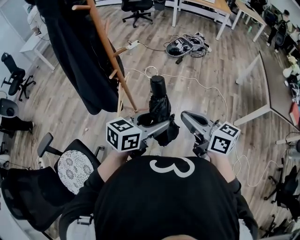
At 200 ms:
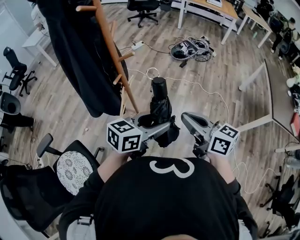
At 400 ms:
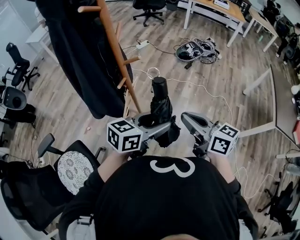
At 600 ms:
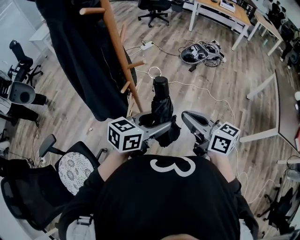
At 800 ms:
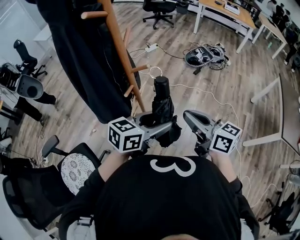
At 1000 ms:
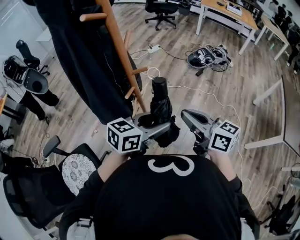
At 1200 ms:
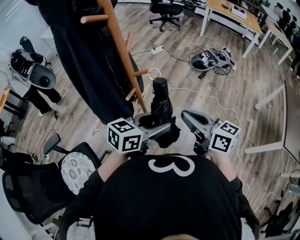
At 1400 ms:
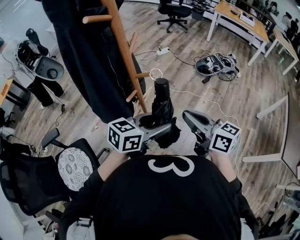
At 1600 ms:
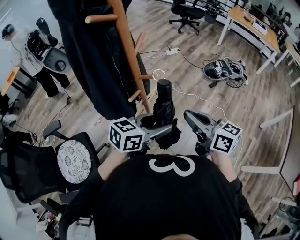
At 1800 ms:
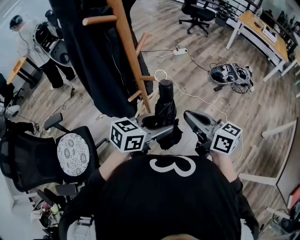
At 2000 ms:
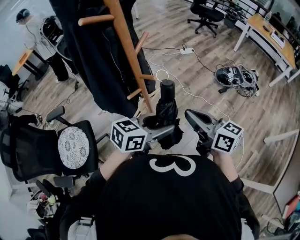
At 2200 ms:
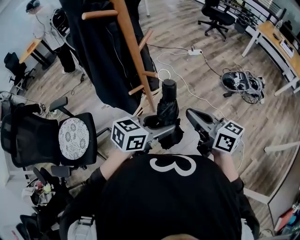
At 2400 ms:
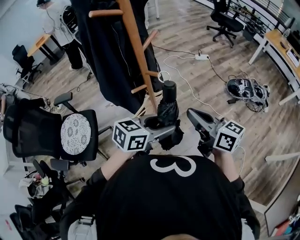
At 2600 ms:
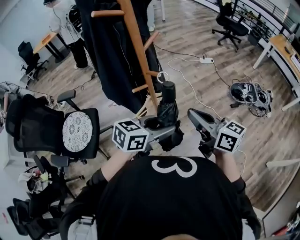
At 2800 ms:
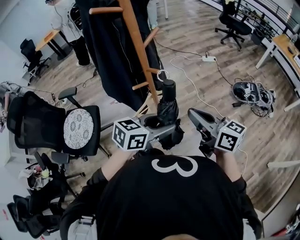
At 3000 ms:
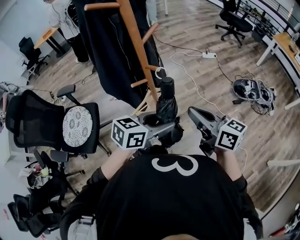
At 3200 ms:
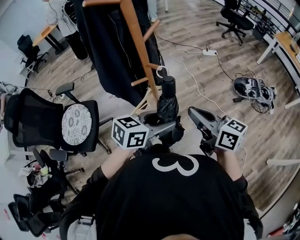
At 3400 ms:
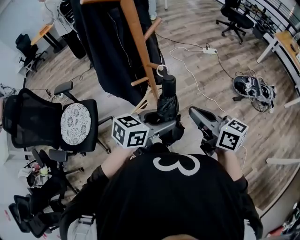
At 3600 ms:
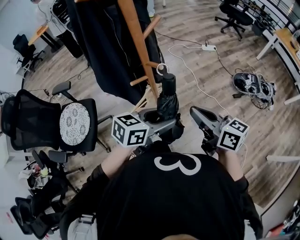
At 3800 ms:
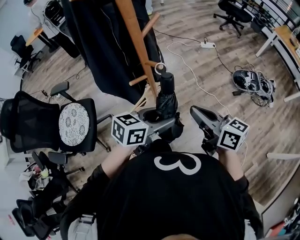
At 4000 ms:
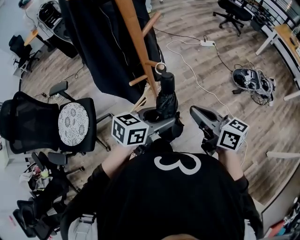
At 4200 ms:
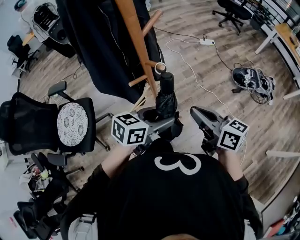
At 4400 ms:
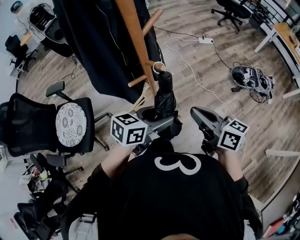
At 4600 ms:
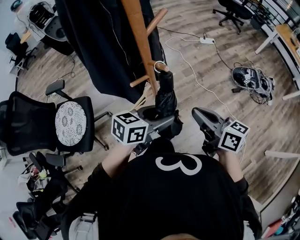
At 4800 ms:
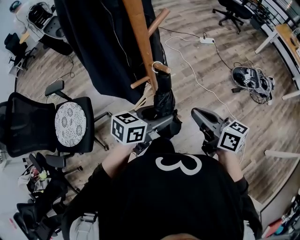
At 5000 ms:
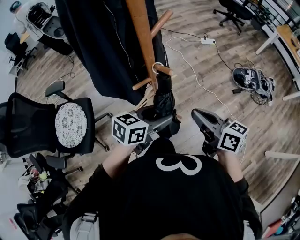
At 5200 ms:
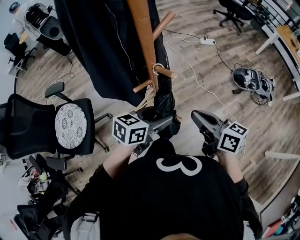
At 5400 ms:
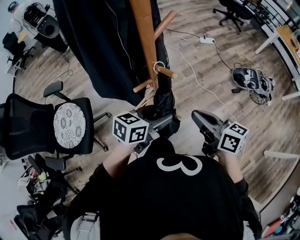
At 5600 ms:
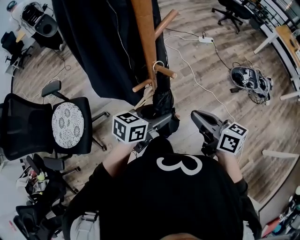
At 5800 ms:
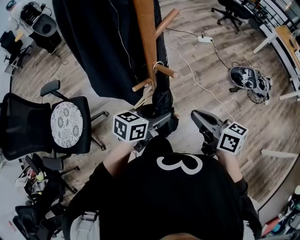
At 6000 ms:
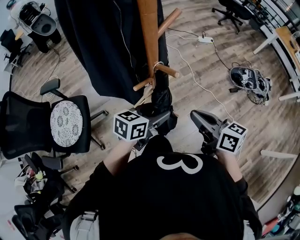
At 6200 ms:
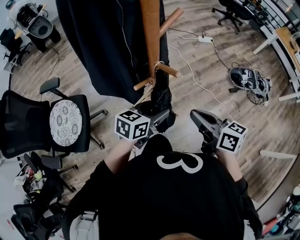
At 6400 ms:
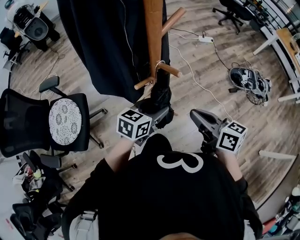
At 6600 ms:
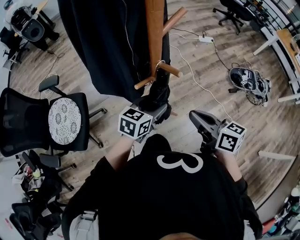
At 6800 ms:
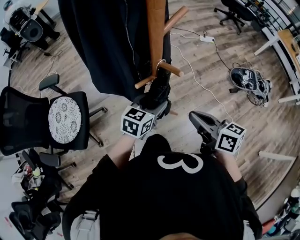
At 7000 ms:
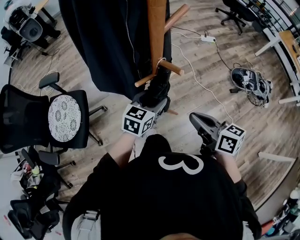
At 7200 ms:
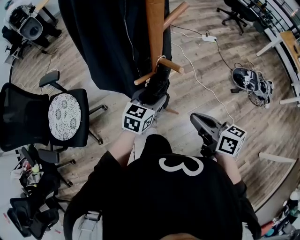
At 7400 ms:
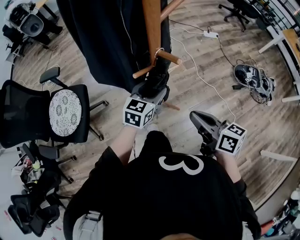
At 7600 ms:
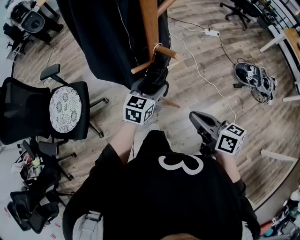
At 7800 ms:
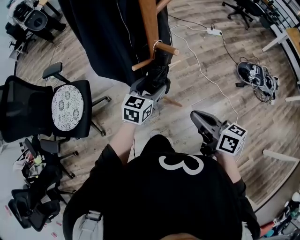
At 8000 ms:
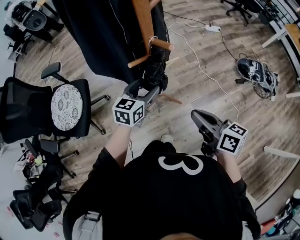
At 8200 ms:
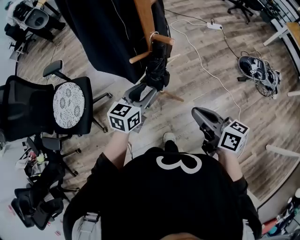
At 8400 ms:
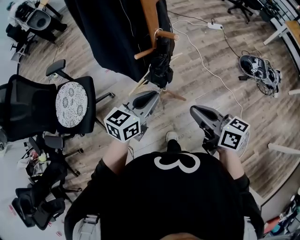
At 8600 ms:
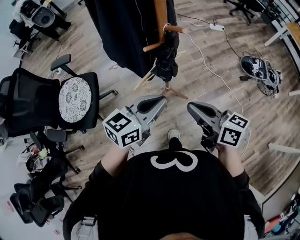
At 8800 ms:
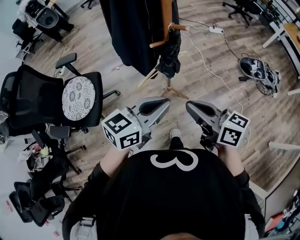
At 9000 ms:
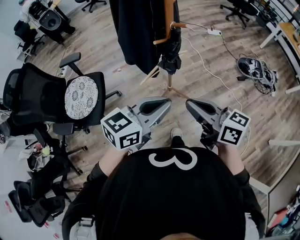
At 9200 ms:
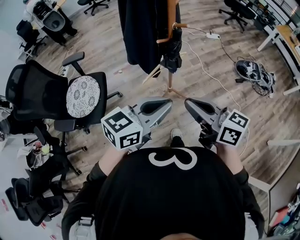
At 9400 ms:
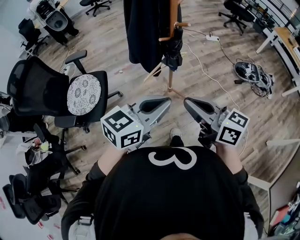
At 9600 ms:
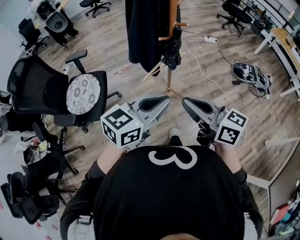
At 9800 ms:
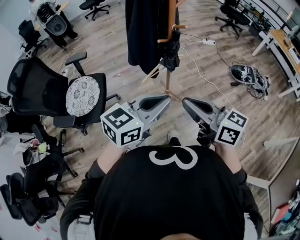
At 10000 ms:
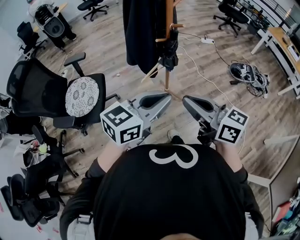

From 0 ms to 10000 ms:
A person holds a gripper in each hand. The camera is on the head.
From 0 ms to 1400 ms: The grippers both shift forward by approximately 20 cm.
From 1400 ms to 2800 ms: The left gripper moves roughly 5 cm, and turns by roughly 30 degrees. Meanwhile the right gripper ends up roughly 10 cm from where it was, and swivels some 30 degrees.
From 2800 ms to 4200 ms: The right gripper shifts about 5 cm downward. Meanwhile the left gripper heads downward and forward, covering some 10 cm.
From 4200 ms to 5800 ms: The left gripper changes place by roughly 10 cm.
From 5800 ms to 7200 ms: The left gripper is displaced forward by some 5 cm, and swivels some 30 degrees.
From 7200 ms to 8600 ms: The left gripper shifts approximately 20 cm backward and upward, and closes; the right gripper heads backward and to the left, covering approximately 10 cm.
From 8600 ms to 10000 ms: The grippers both shift backward and upward by roughly 25 cm.

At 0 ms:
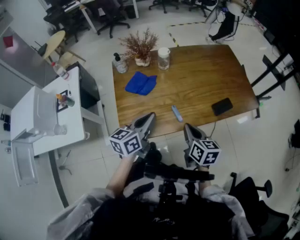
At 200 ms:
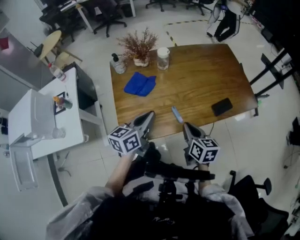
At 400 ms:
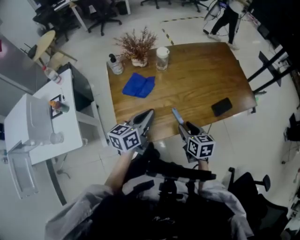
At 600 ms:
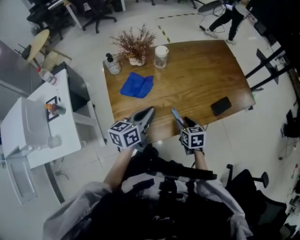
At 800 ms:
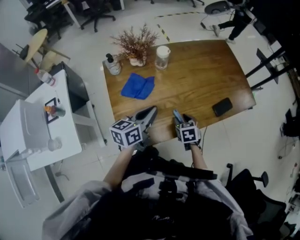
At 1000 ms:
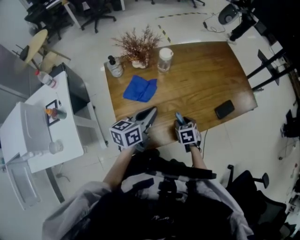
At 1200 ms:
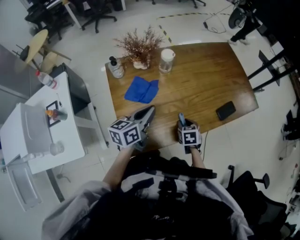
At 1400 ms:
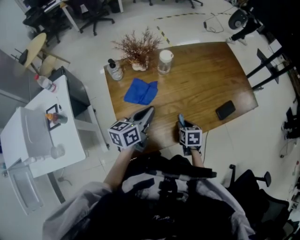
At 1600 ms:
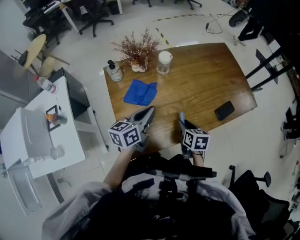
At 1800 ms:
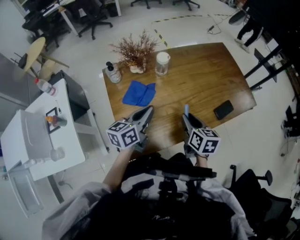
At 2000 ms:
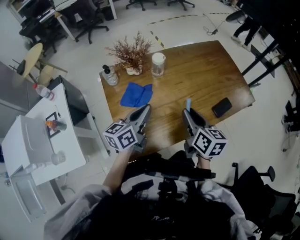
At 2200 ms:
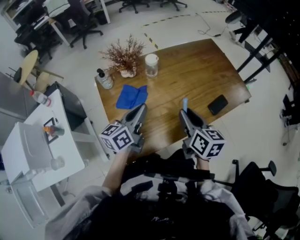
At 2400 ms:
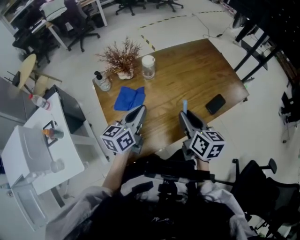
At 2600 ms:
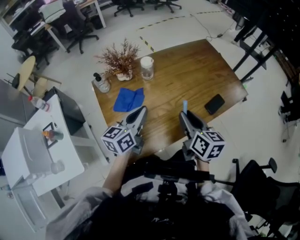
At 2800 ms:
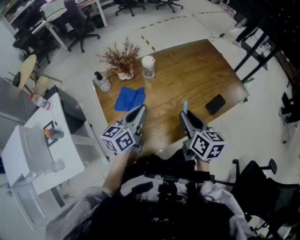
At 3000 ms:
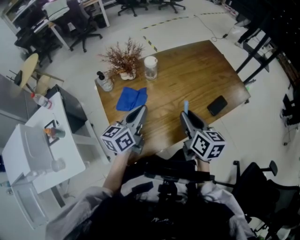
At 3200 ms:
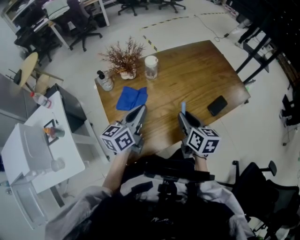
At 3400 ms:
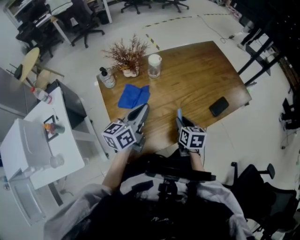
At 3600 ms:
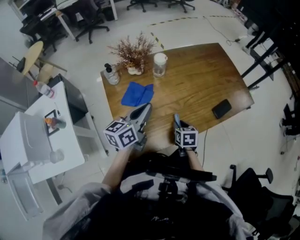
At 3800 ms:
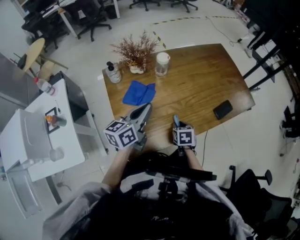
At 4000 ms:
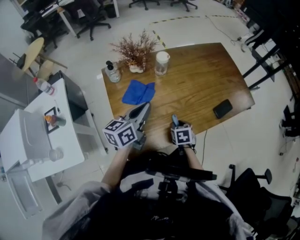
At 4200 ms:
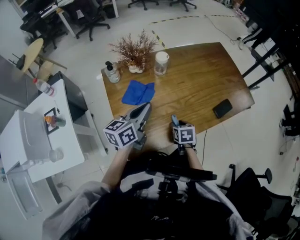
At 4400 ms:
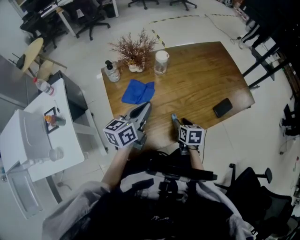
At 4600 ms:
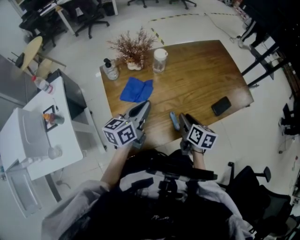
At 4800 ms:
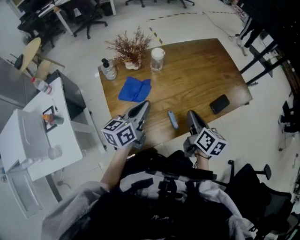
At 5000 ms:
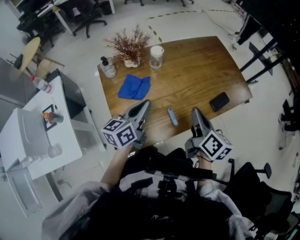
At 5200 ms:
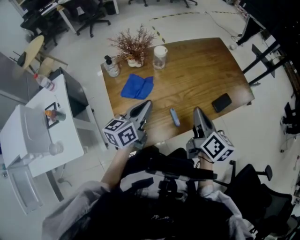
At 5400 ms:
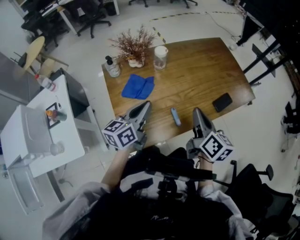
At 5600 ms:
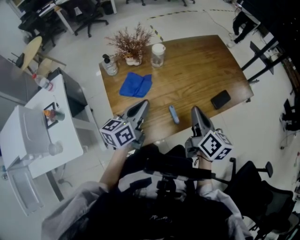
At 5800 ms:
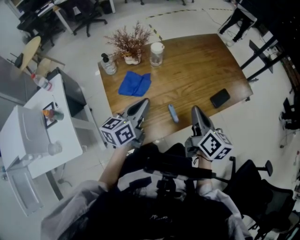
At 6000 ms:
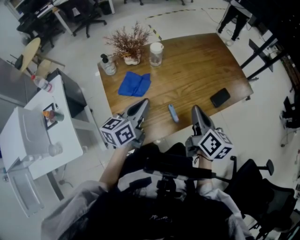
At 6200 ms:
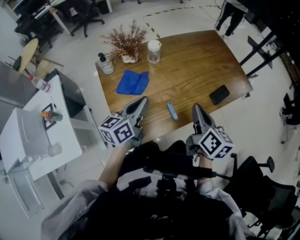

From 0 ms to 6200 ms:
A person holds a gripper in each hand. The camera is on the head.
From 0 ms to 1600 ms: The right gripper goes some 15 cm downward, forward and to the left, and opens, while the left gripper shifts approximately 10 cm forward and to the left.
From 1600 ms to 3200 ms: The right gripper heads upward, covering roughly 10 cm.
From 3200 ms to 4600 ms: The right gripper goes some 5 cm downward.
From 4600 ms to 6200 ms: The right gripper shifts about 10 cm upward, and closes its fingers.

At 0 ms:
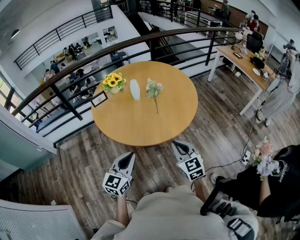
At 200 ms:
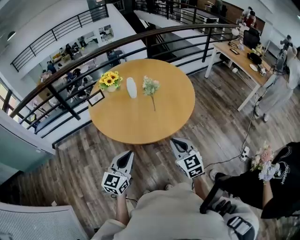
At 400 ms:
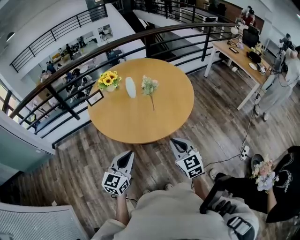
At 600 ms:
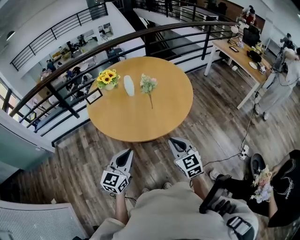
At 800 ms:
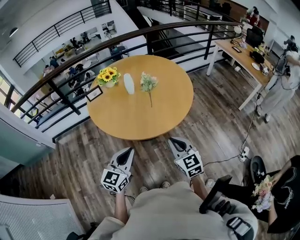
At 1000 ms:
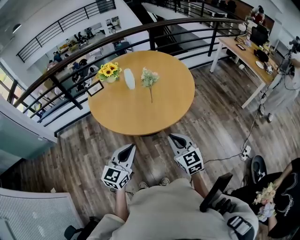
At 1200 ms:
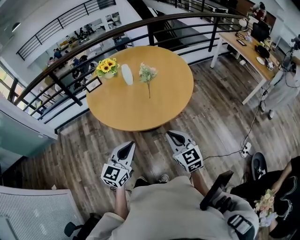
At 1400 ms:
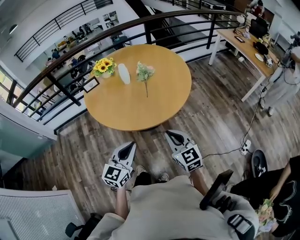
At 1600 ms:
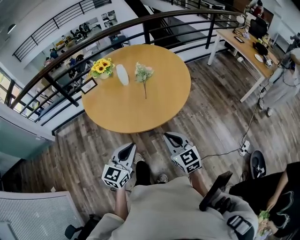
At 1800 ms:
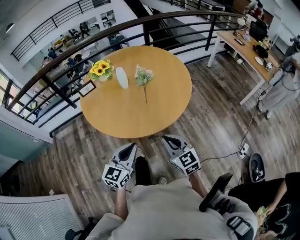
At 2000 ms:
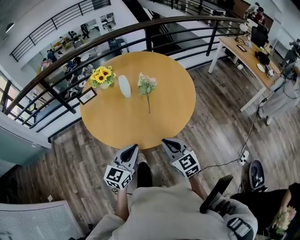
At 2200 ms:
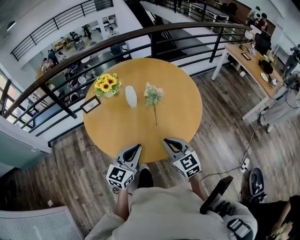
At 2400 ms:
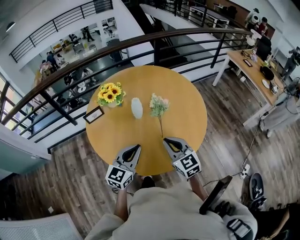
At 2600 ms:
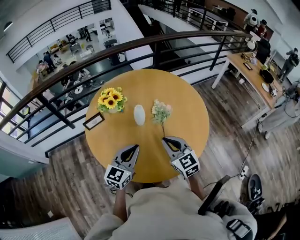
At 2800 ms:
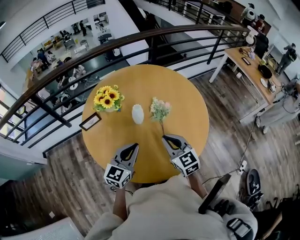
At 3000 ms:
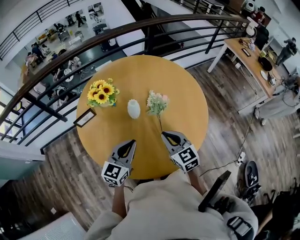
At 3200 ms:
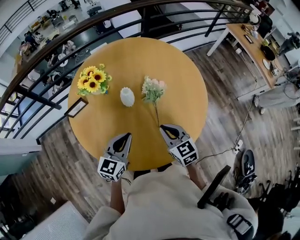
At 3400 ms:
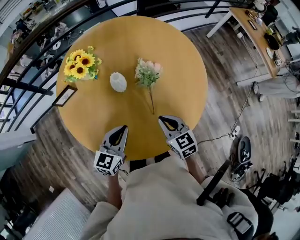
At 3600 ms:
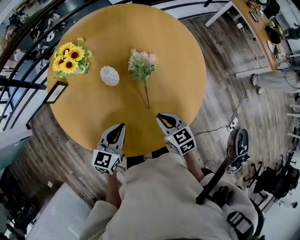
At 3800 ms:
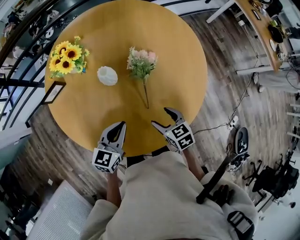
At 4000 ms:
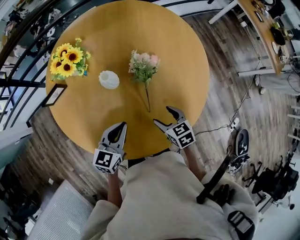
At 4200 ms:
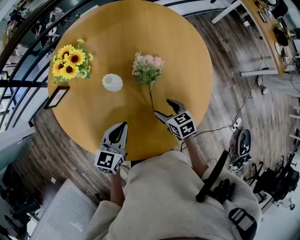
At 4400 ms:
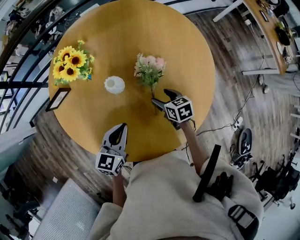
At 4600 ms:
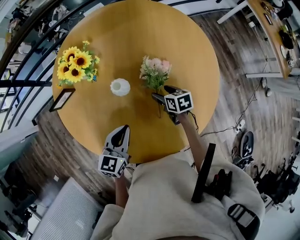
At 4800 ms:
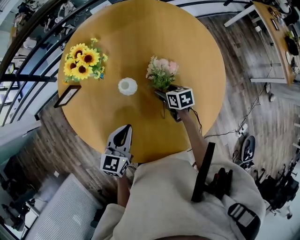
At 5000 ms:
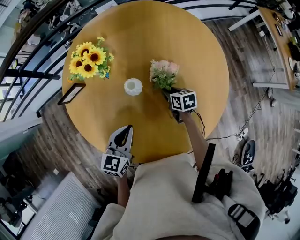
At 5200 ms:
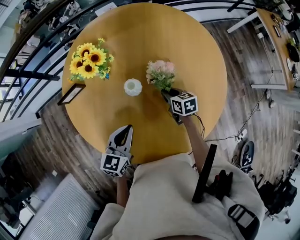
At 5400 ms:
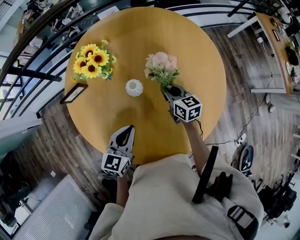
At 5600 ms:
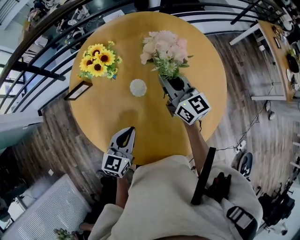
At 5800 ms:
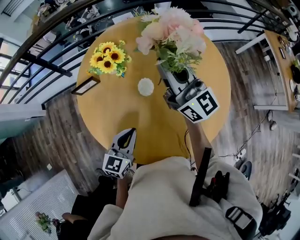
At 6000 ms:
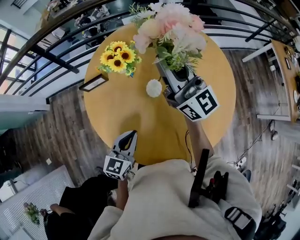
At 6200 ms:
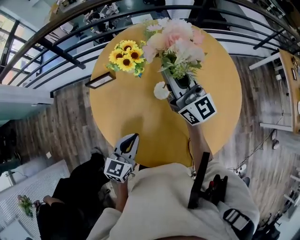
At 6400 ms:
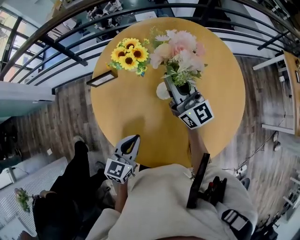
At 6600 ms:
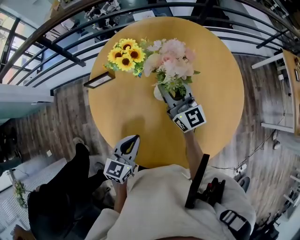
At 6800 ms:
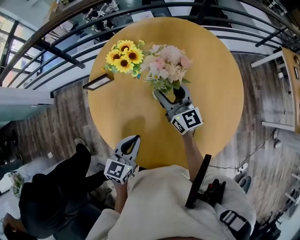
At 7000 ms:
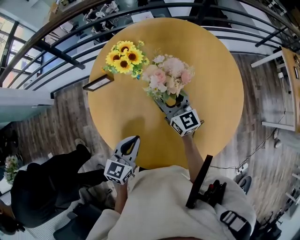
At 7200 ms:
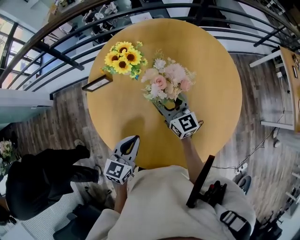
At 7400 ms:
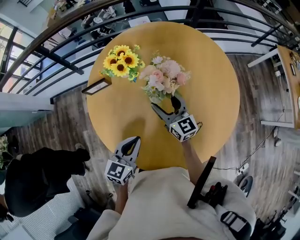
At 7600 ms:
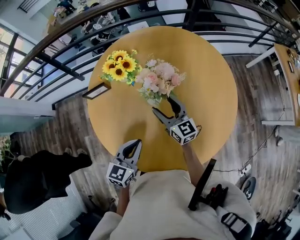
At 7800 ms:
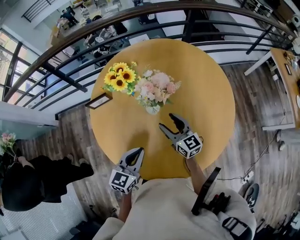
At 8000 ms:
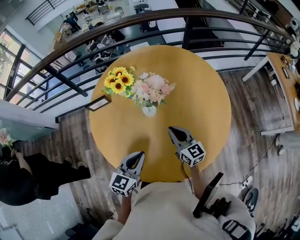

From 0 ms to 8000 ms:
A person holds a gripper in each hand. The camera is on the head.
From 0 ms to 1600 ms: The left gripper travels to the right by approximately 10 cm.
From 1600 ms to 3200 ms: The two grippers go approximately 30 cm forward.
From 3200 ms to 4800 ms: The left gripper changes place by about 5 cm; the right gripper heads downward and forward, covering approximately 25 cm, rotates about 40 degrees, and opens.
From 4800 ms to 6400 ms: The right gripper shifts some 30 cm upward, angles its fingers upward, by approximately 60 degrees, and closes; the left gripper travels to the left by some 5 cm.
From 6400 ms to 8000 ms: The left gripper moves to the right, approximately 5 cm; the right gripper shifts roughly 20 cm downward, backward and to the right, rotates about 20 degrees, and opens, then closes once more.
